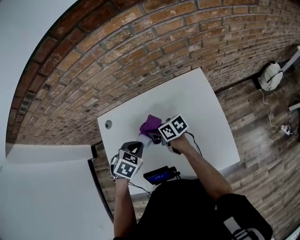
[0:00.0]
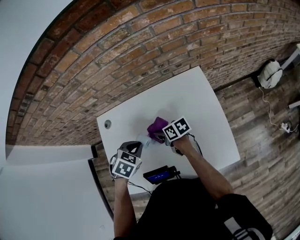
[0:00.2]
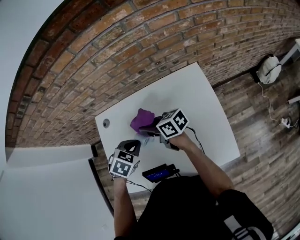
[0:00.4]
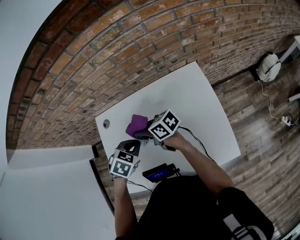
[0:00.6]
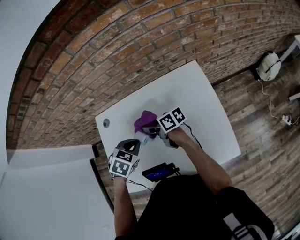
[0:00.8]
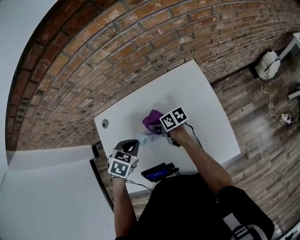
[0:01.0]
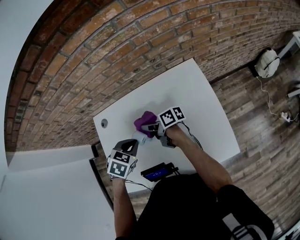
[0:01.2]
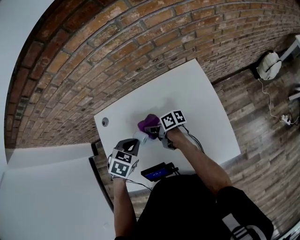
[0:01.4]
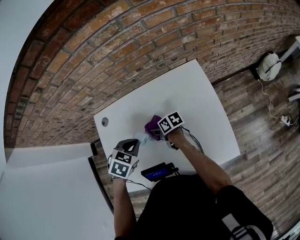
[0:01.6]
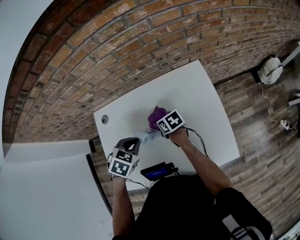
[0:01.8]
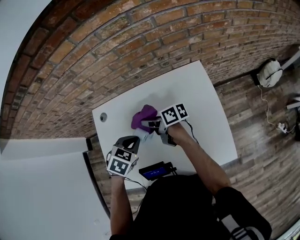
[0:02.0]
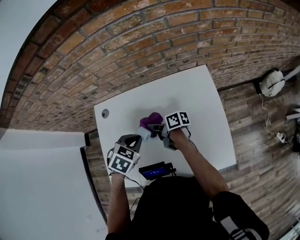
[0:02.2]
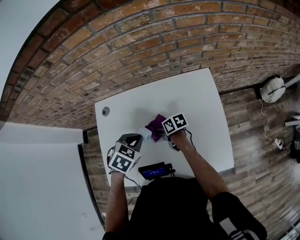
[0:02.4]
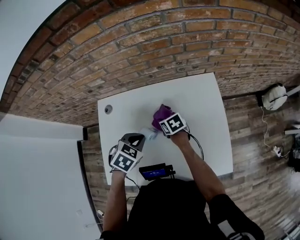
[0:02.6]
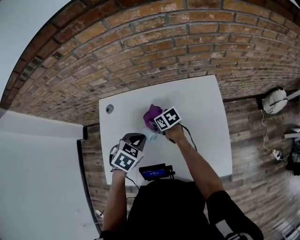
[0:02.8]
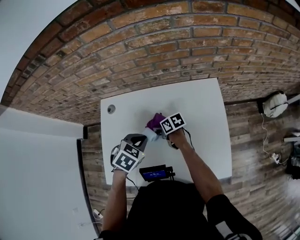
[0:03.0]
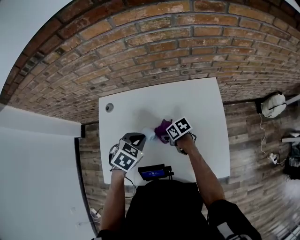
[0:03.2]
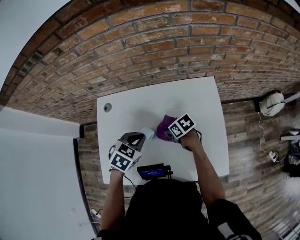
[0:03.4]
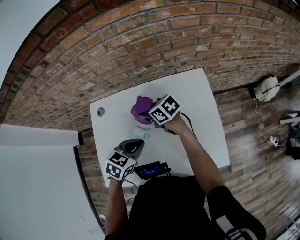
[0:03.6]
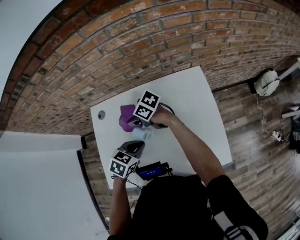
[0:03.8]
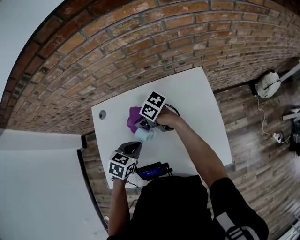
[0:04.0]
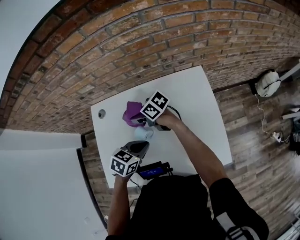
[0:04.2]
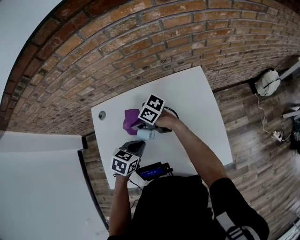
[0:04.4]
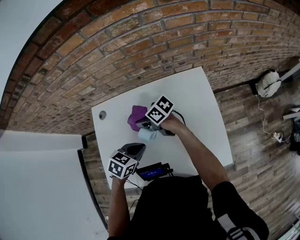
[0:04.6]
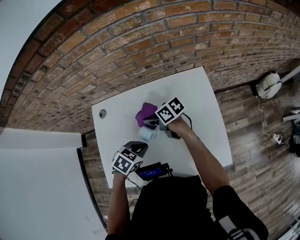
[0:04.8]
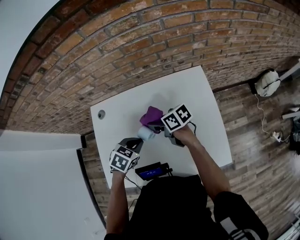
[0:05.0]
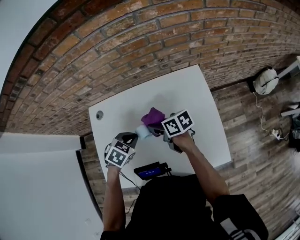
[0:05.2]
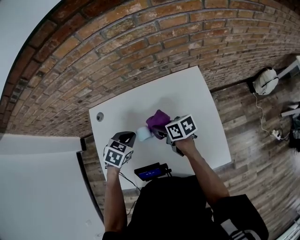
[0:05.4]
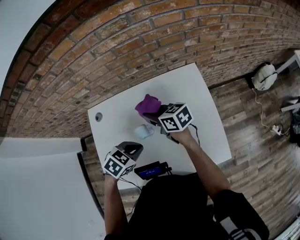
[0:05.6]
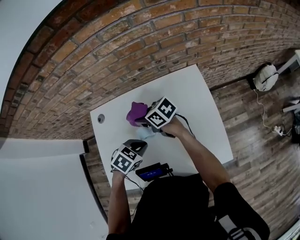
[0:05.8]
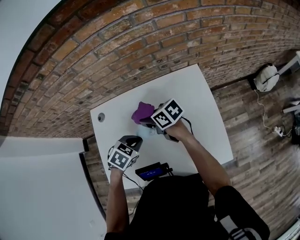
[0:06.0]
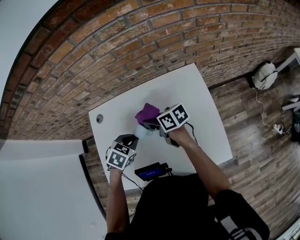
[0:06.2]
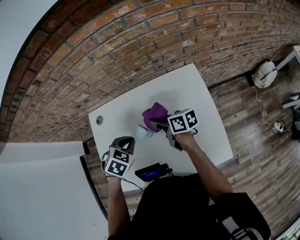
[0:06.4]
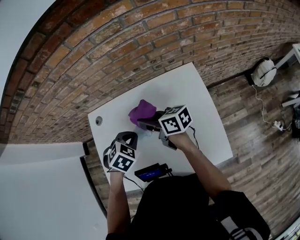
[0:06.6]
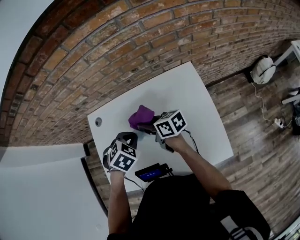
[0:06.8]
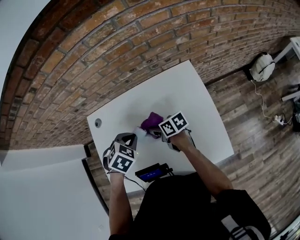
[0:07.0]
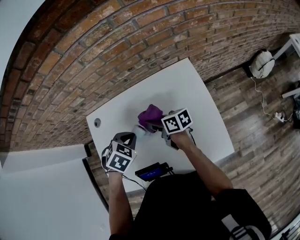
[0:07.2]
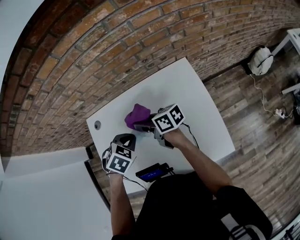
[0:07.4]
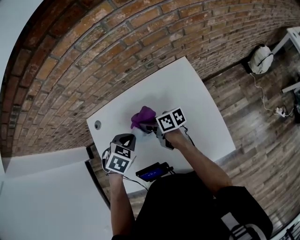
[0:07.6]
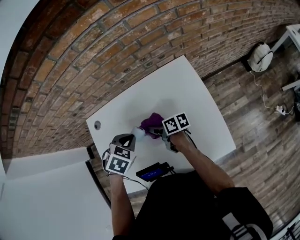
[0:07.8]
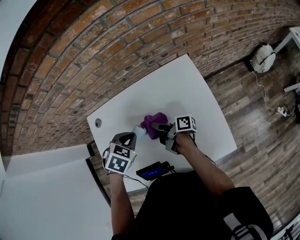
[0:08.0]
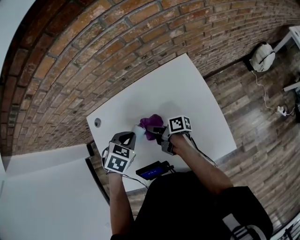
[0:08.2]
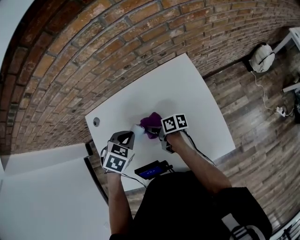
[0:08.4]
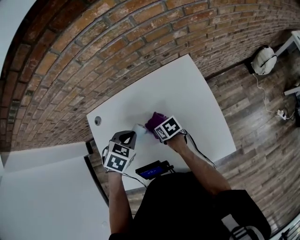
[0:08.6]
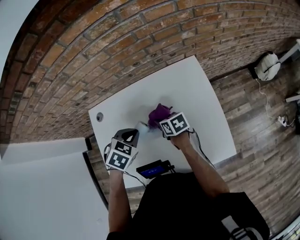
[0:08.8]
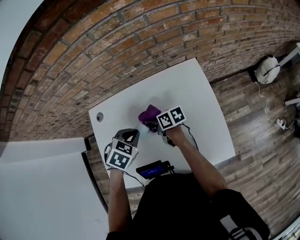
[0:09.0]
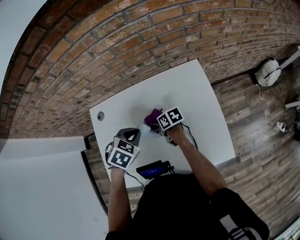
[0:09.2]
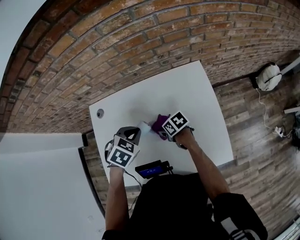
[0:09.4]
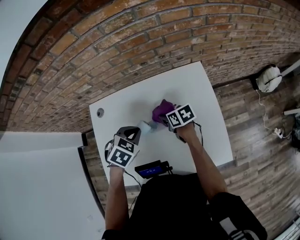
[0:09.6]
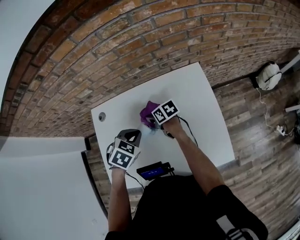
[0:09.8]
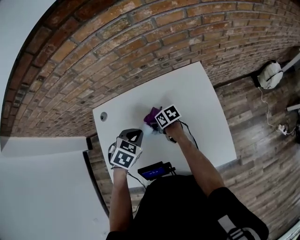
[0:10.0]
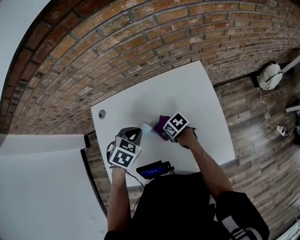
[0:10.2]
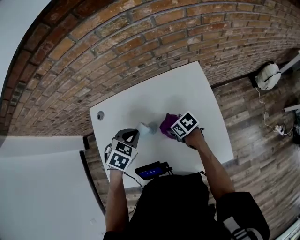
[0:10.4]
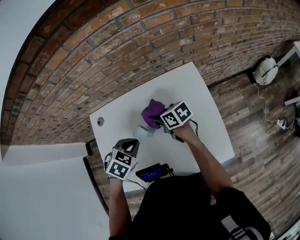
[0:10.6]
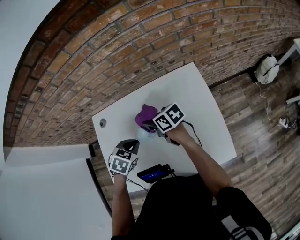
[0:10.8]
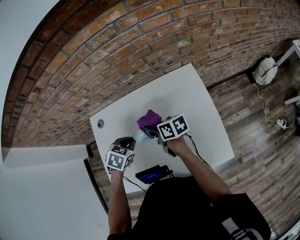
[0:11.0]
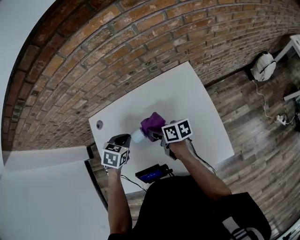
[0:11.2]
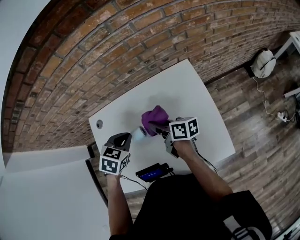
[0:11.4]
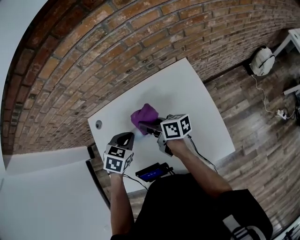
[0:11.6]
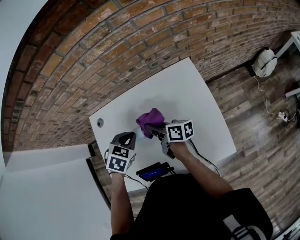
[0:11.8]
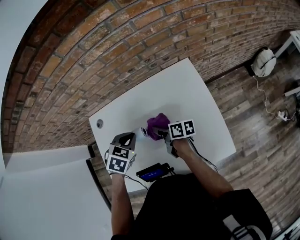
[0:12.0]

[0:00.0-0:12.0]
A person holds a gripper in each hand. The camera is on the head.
0:00.0 to 0:01.6: The right gripper goes up and down, approximately 15 cm each way, reversing 2 times.
0:01.6 to 0:03.0: The right gripper goes up and down, roughly 10 cm each way, reversing 2 times.
0:03.0 to 0:04.4: The right gripper is displaced upward by about 15 cm, and rotates some 30 degrees.
0:04.4 to 0:06.0: The right gripper turns by some 20 degrees.
0:06.0 to 0:07.6: The right gripper goes up and down, roughly 10 cm each way, reversing 3 times, and turns by roughly 30 degrees.
0:07.6 to 0:09.0: The right gripper heads downward, covering some 5 cm.
0:09.0 to 0:10.4: The right gripper moves forward and backward over roughly 10 cm, changing direction 2 times, and turns by approximately 30 degrees.
0:10.4 to 0:12.0: The right gripper travels upward and back again, roughly 15 cm each way, and swivels about 50 degrees.

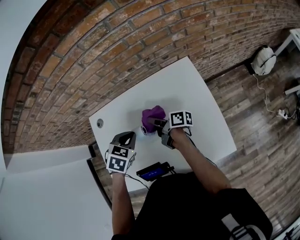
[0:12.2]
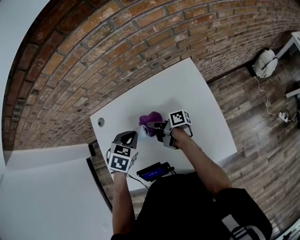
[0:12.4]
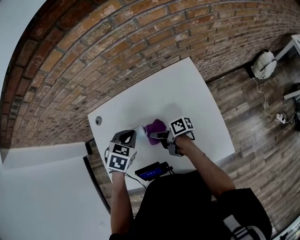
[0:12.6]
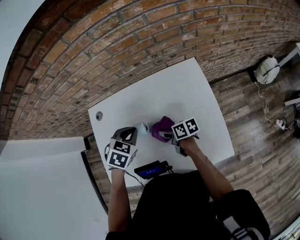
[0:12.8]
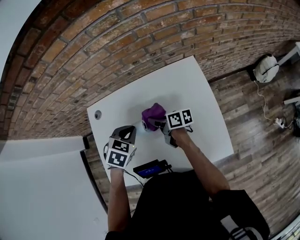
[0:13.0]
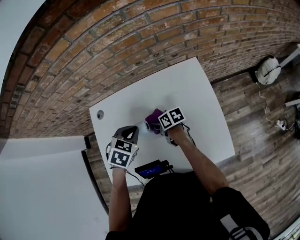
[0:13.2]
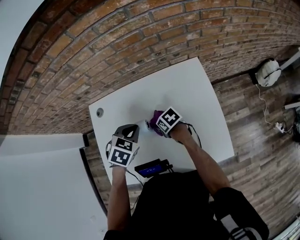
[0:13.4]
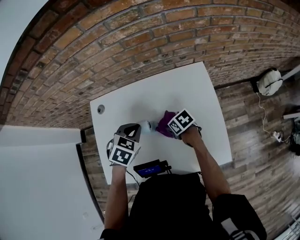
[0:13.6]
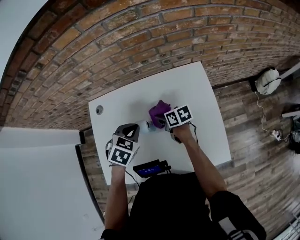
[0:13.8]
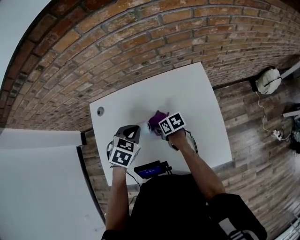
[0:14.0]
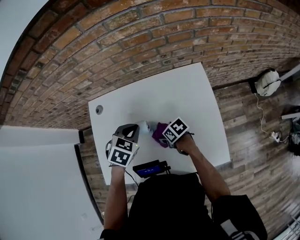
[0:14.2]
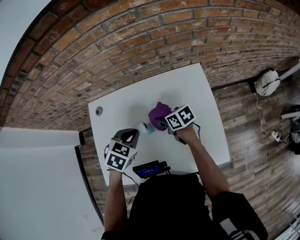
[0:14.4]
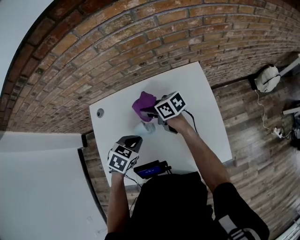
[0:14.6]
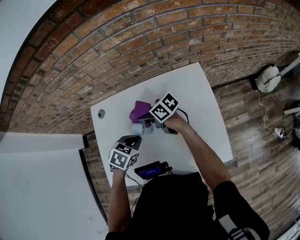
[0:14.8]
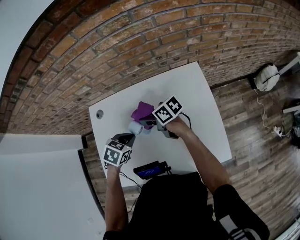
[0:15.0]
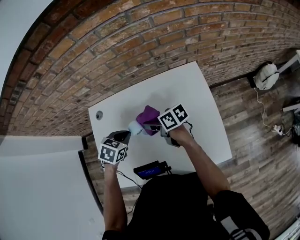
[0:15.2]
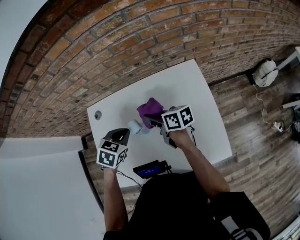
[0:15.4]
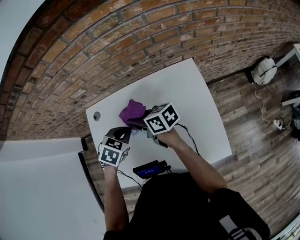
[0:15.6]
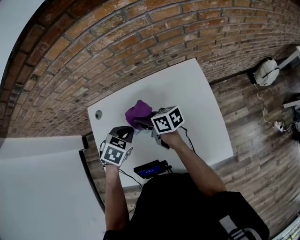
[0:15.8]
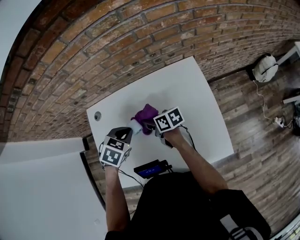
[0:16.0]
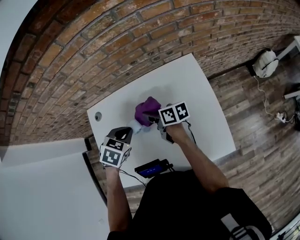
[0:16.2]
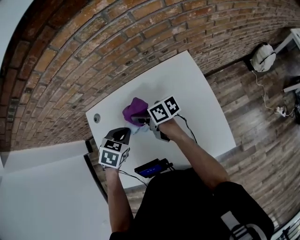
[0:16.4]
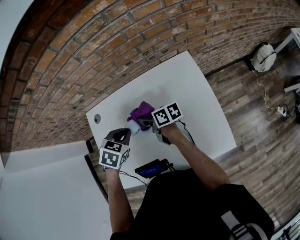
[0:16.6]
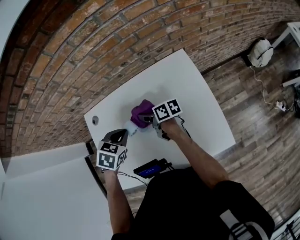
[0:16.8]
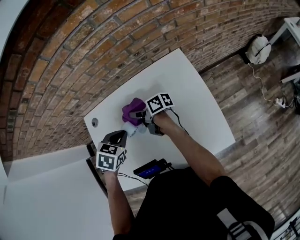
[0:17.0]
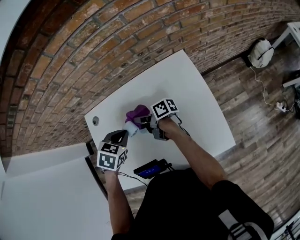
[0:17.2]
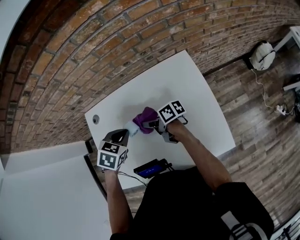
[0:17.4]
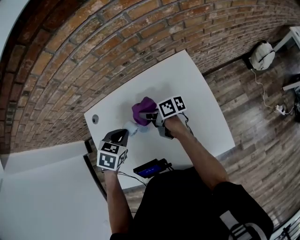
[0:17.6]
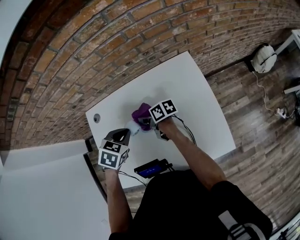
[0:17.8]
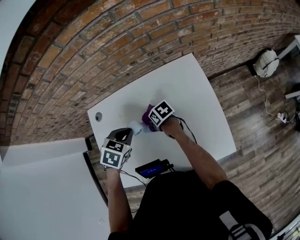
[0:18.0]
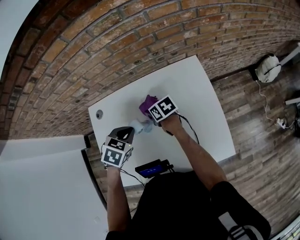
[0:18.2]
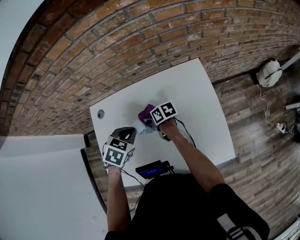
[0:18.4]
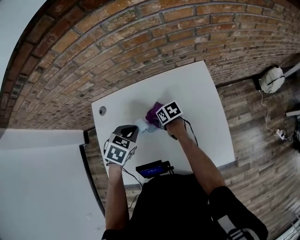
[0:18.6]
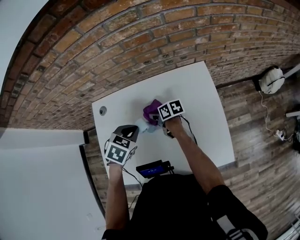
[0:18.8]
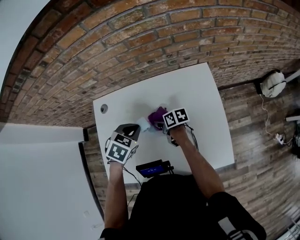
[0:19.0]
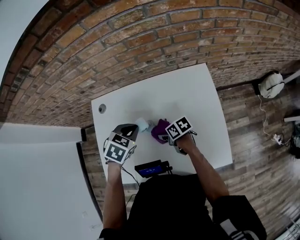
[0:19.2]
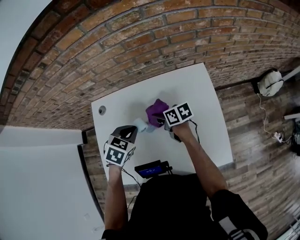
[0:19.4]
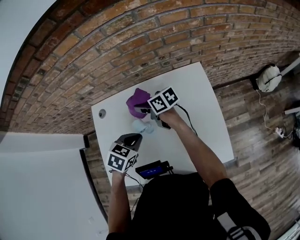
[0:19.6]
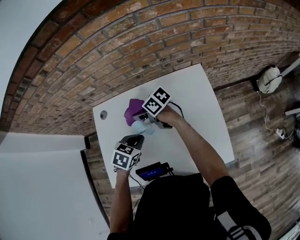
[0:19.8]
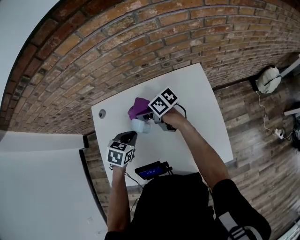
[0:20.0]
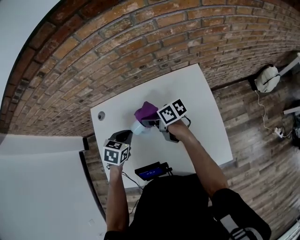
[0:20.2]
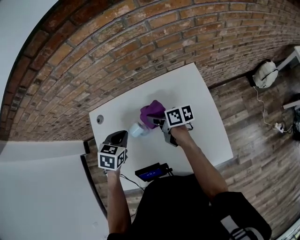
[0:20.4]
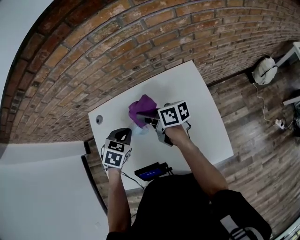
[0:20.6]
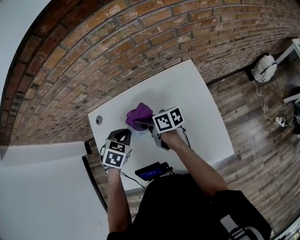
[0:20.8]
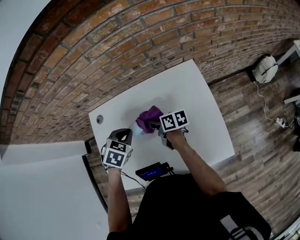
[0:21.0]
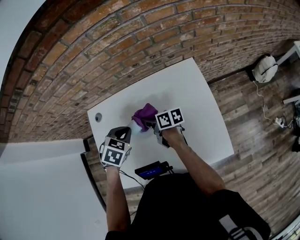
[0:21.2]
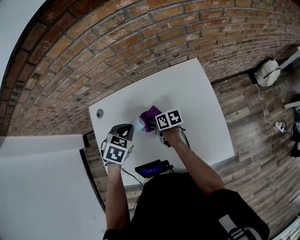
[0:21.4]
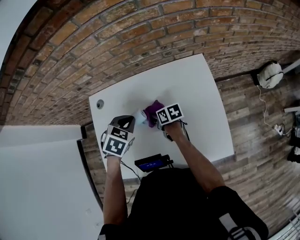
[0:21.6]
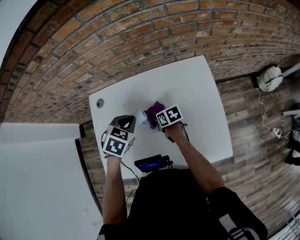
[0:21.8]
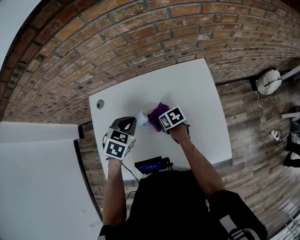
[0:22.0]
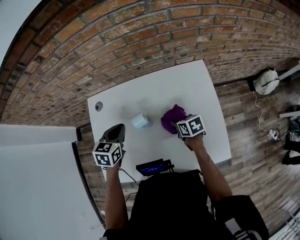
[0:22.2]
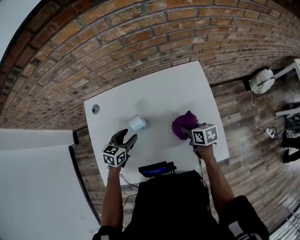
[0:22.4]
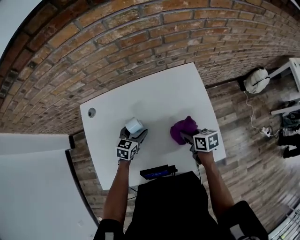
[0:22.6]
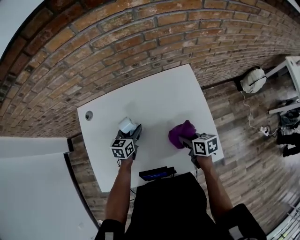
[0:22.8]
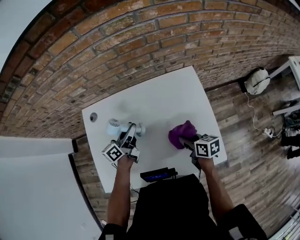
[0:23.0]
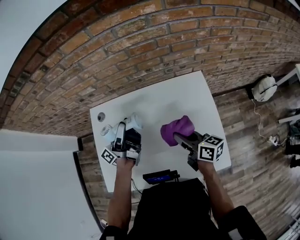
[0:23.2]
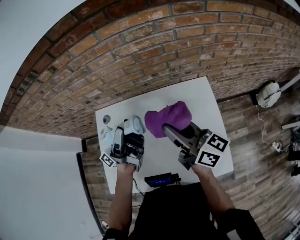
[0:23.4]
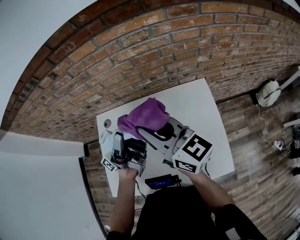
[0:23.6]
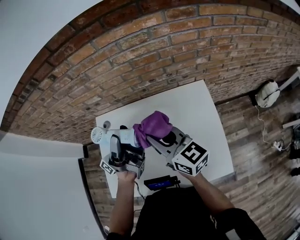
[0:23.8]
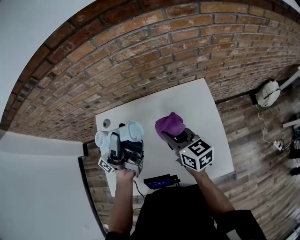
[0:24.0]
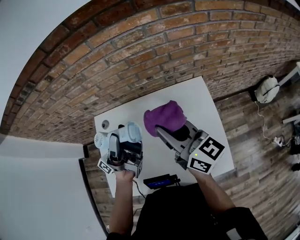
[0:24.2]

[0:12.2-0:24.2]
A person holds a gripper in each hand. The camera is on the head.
0:12.2 to 0:13.8: The right gripper turns by about 50 degrees.
0:13.8 to 0:15.2: The left gripper ends up roughly 5 cm from where it was. Meanwhile the right gripper travels upward by some 10 cm.
0:15.2 to 0:16.6: The right gripper goes up and down, some 10 cm each way, reversing 3 times.
0:16.6 to 0:18.2: The right gripper shifts approximately 5 cm downward, and changes its angle by roughly 30 degrees.
0:18.2 to 0:19.8: The right gripper travels upward by about 10 cm, and rotates roughly 30 degrees.
0:19.8 to 0:21.2: The right gripper changes place by about 10 cm, and changes its angle by approximately 40 degrees, while the left gripper ends up roughly 5 cm from where it was.
0:21.2 to 0:22.6: The right gripper moves backward and to the right, some 20 cm, and rotates roughly 30 degrees, while the left gripper goes about 15 cm downward, changes its angle by about 30 degrees, and opens its fingers.
0:22.6 to 0:24.2: The left gripper moves upward, roughly 35 cm, and tilts its fingers approximately 80 degrees upward. The right gripper swings up and down, about 35 cm each way, with 2 reversals, and points its fingers approximately 50 degrees further upward.
